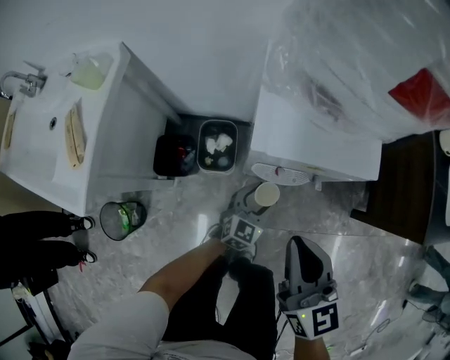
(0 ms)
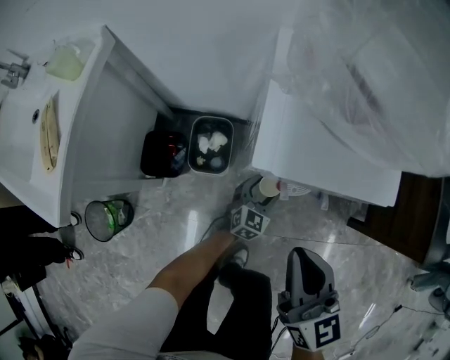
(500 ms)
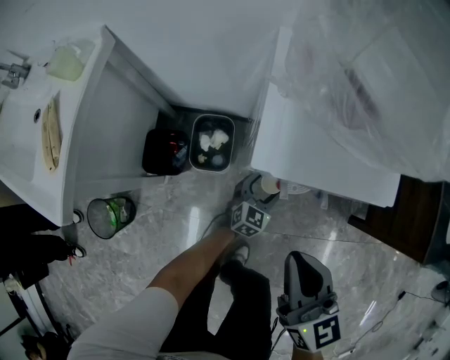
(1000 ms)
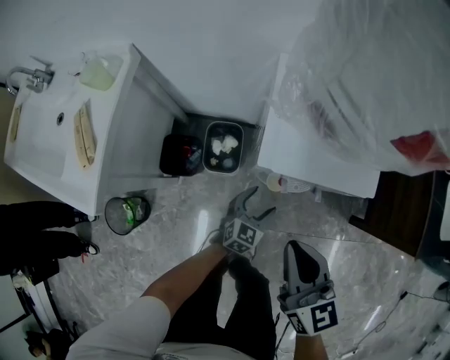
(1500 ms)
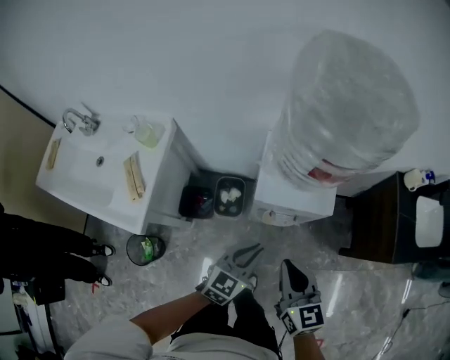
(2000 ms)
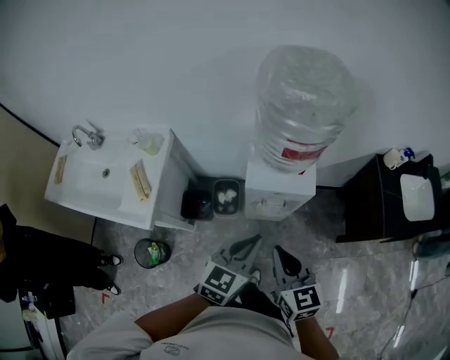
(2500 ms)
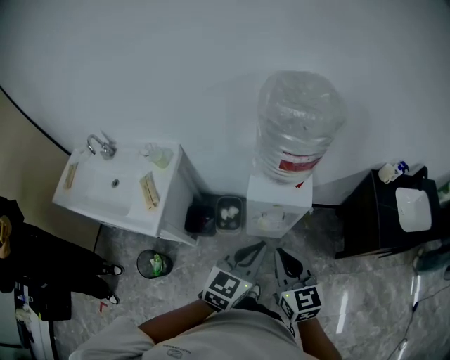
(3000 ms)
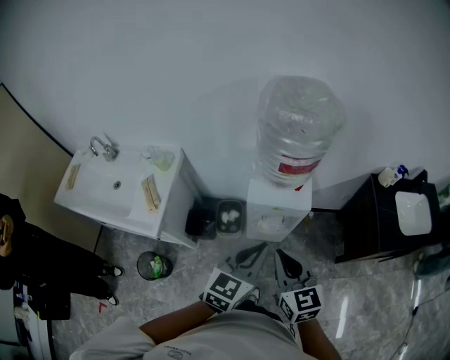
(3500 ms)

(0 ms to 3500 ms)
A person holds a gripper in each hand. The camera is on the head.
0 ms - 2000 ms: The right gripper is displaced upward by roughly 15 cm. Meanwhile the left gripper travels upward by some 30 cm, and closes its fingers.
2000 ms - 3500 ms: The left gripper travels upward by some 20 cm. The right gripper moves upward and backward, approximately 15 cm.

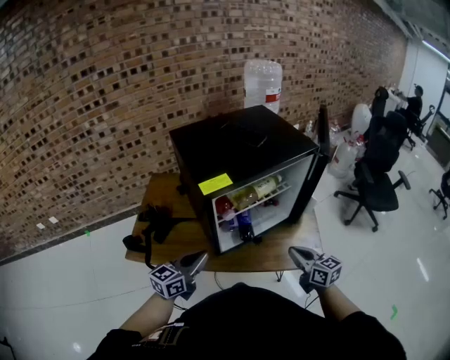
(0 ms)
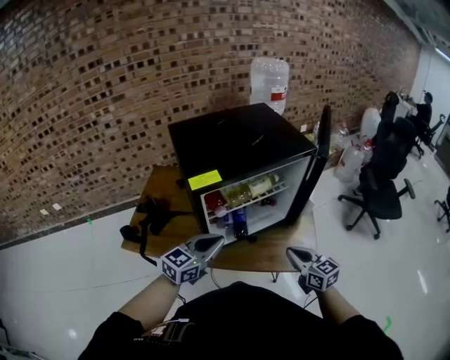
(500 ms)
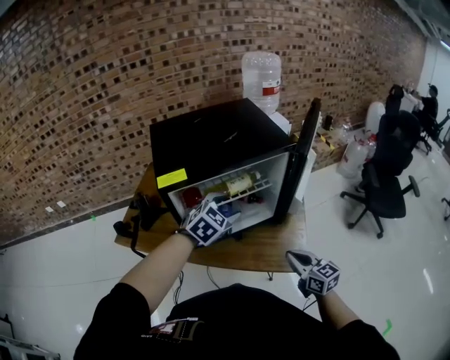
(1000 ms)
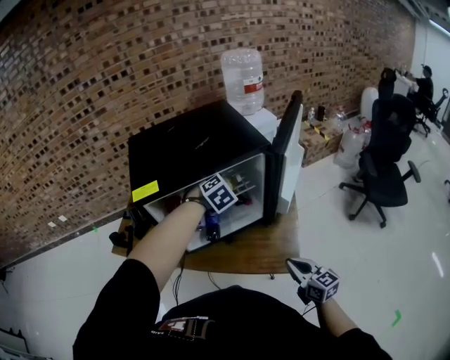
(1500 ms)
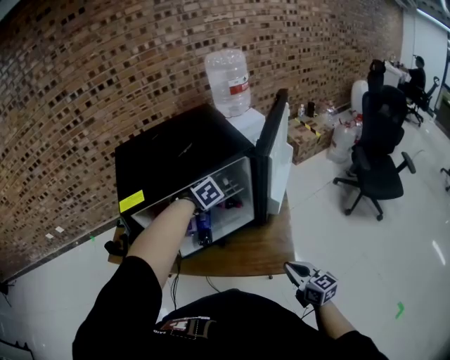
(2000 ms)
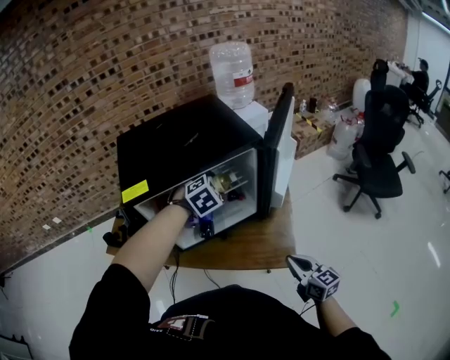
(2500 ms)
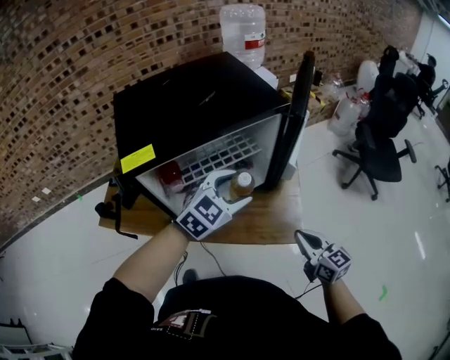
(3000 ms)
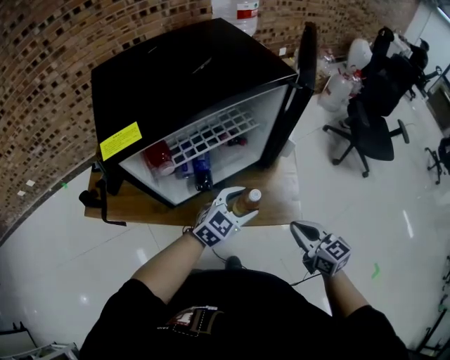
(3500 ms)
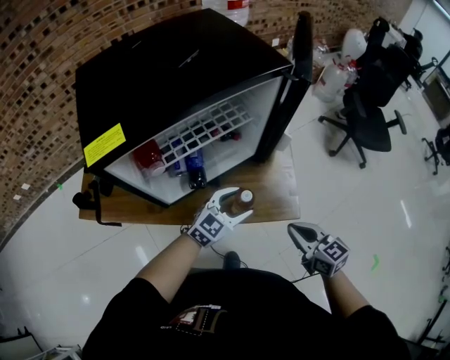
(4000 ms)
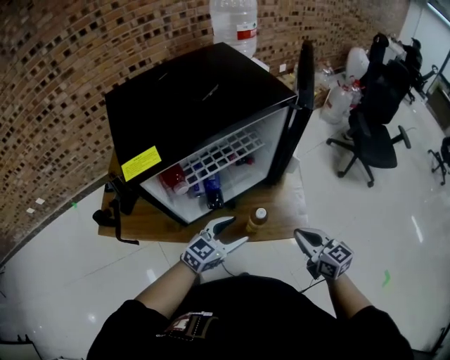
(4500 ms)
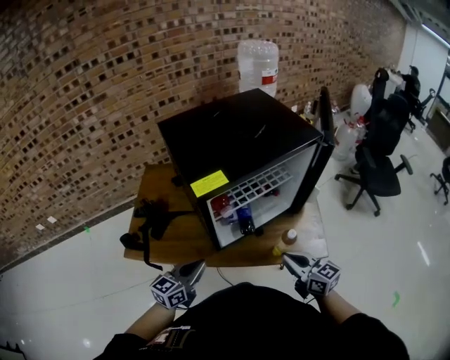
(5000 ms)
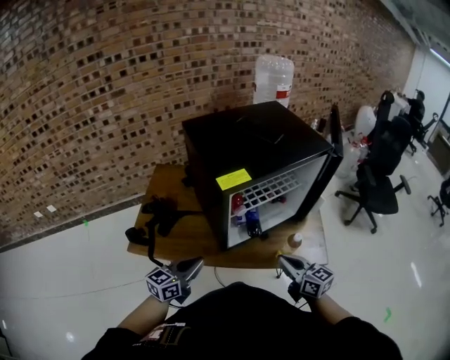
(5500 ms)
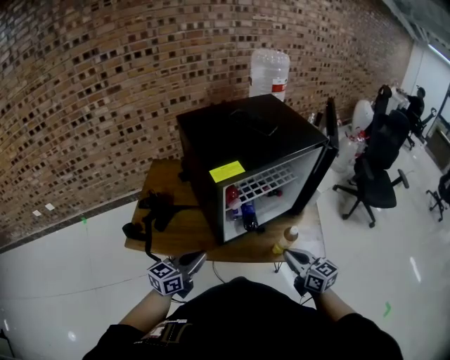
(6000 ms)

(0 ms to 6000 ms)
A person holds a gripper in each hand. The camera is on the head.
0 ms - 2000 ms: The right gripper heads to the right, covering about 20 cm, while the left gripper heads to the right and forward, covering roughly 40 cm, tips its fingers downward by about 50 degrees, and opens up.
2000 ms - 4000 ms: The left gripper ends up approximately 25 cm from where it was, and tips its fingers upward by roughly 40 degrees. Meanwhile the right gripper moves some 5 cm.
4000 ms - 6000 ms: The right gripper moves to the left and upward, about 20 cm. Meanwhile the left gripper moves to the left and backward, approximately 40 cm, changes its angle by about 30 degrees, and closes up.

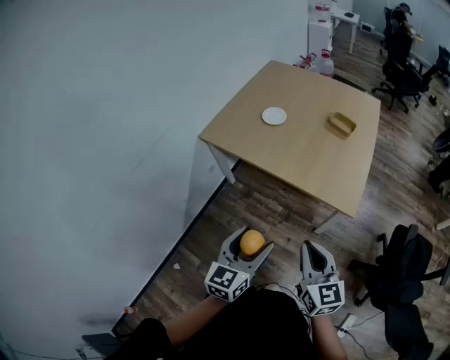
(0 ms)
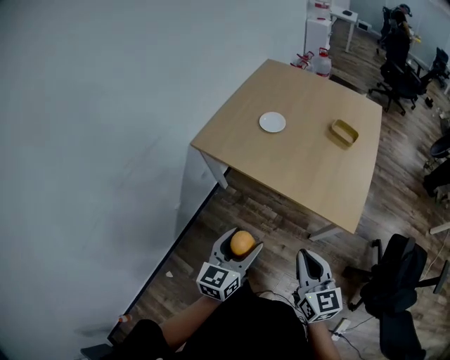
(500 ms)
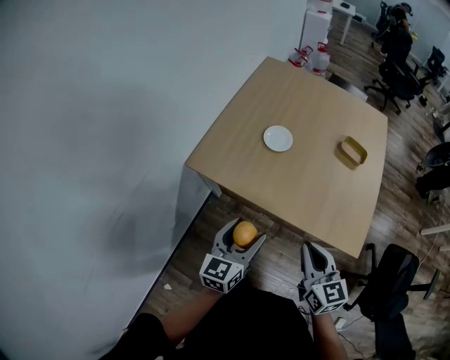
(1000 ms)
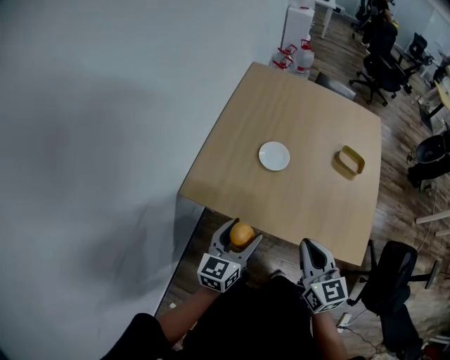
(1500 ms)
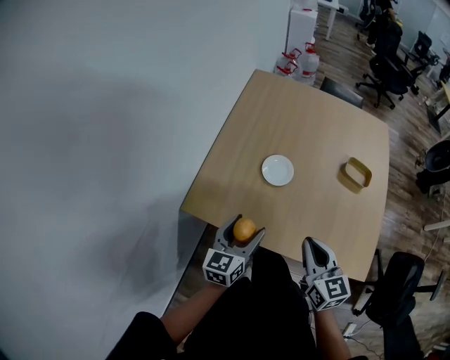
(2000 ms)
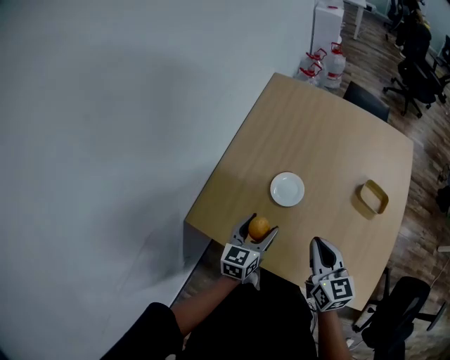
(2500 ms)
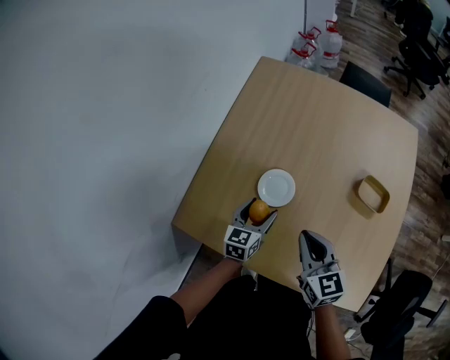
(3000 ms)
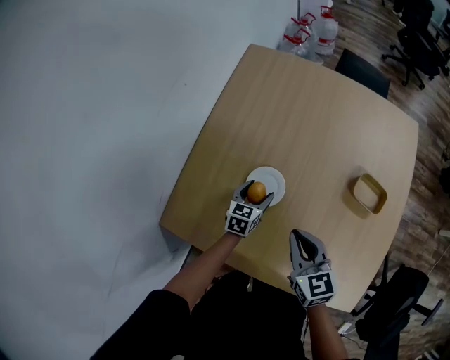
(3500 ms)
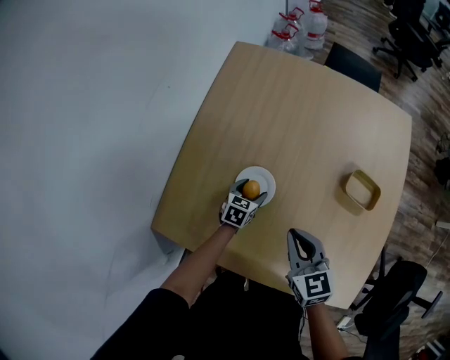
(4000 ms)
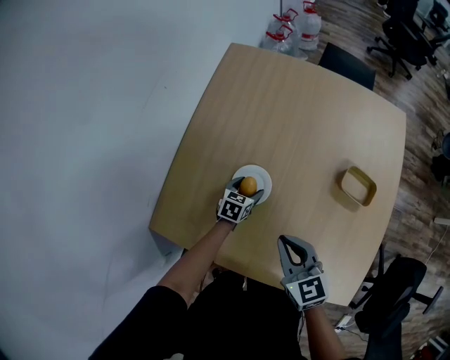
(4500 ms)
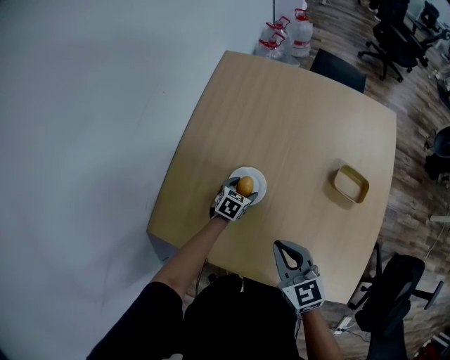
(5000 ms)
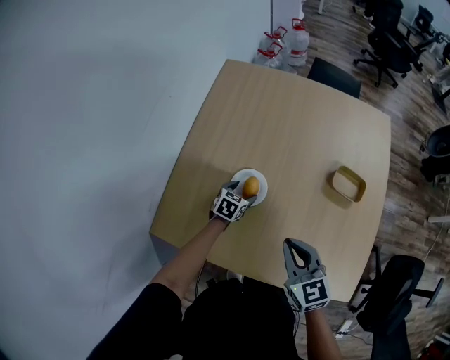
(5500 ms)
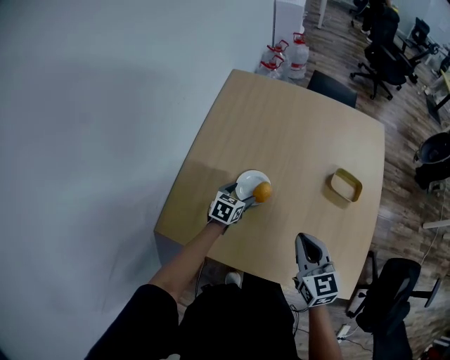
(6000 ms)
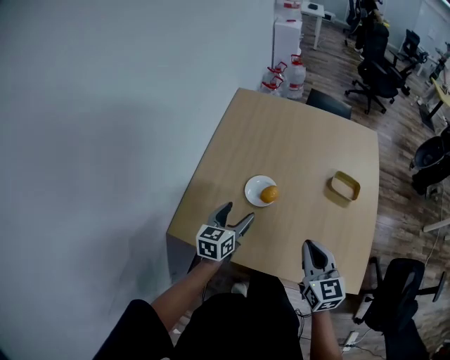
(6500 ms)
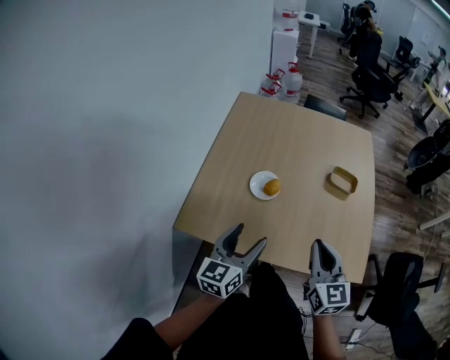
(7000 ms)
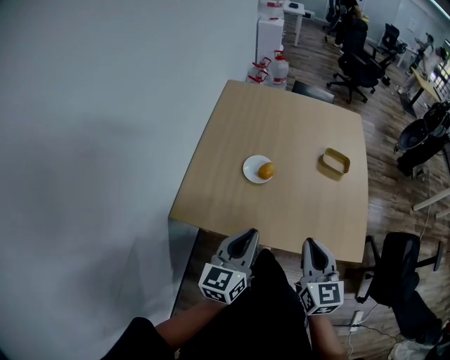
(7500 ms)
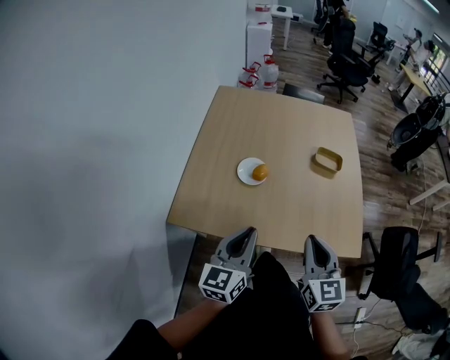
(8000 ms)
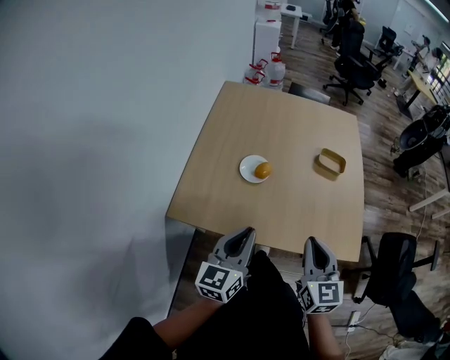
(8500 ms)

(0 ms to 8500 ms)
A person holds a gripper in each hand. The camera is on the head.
0 ms - 2000 ms: Both grippers are carried forward, some 50 cm.
2000 ms - 4000 ms: The right gripper shifts approximately 20 cm forward and downward. The left gripper travels forward, downward and to the right by approximately 40 cm, and points its fingers about 30 degrees further downward.
4000 ms - 6500 ms: The right gripper goes some 15 cm backward and upward. The left gripper is displaced upward and backward by approximately 25 cm, and turns by approximately 30 degrees.
6500 ms - 8500 ms: The right gripper heads backward, covering approximately 15 cm. The left gripper travels backward and upward by about 20 cm, and closes its fingers.

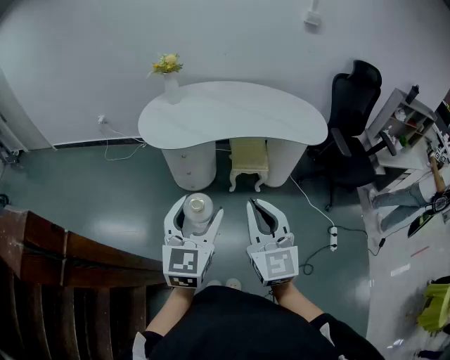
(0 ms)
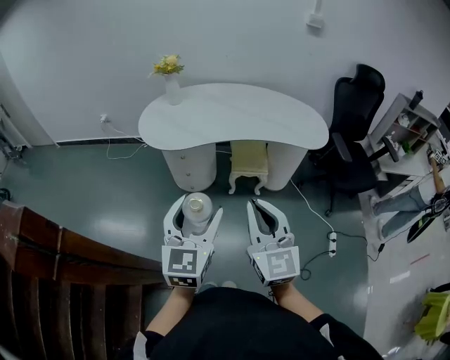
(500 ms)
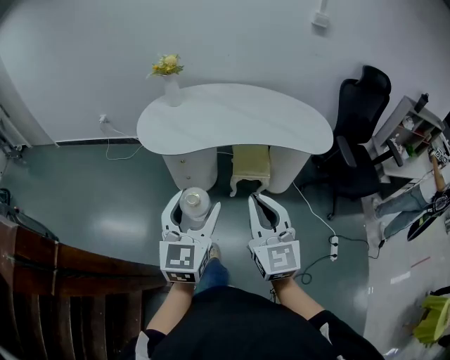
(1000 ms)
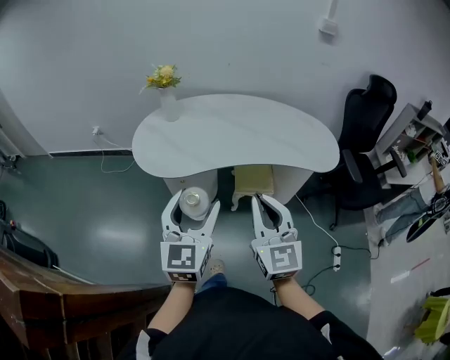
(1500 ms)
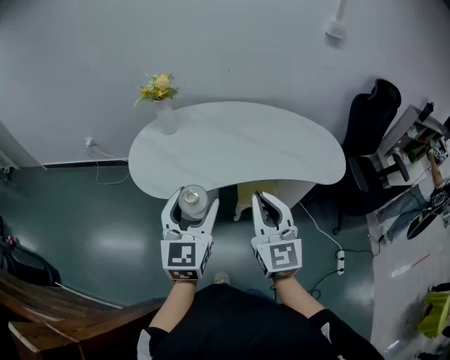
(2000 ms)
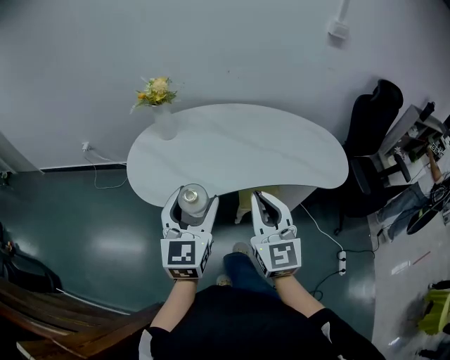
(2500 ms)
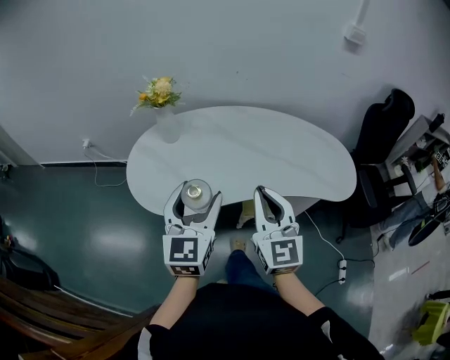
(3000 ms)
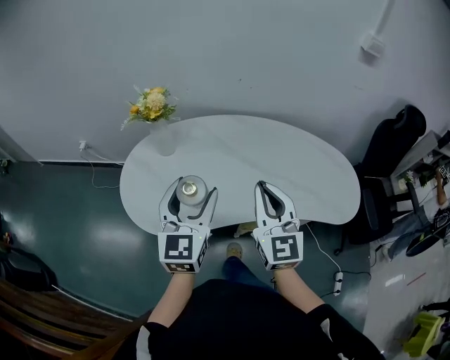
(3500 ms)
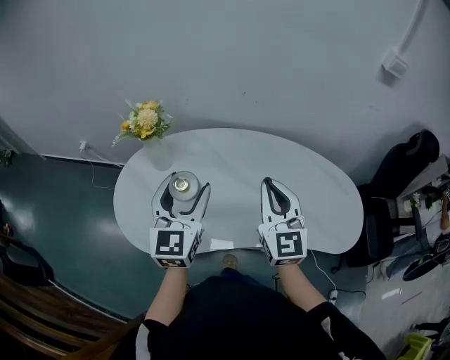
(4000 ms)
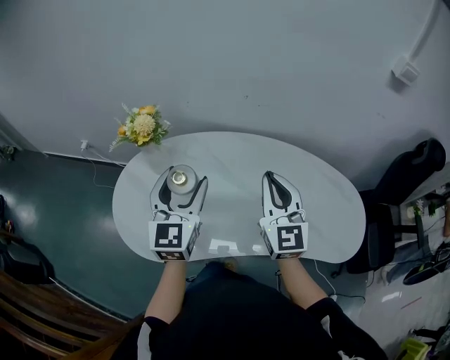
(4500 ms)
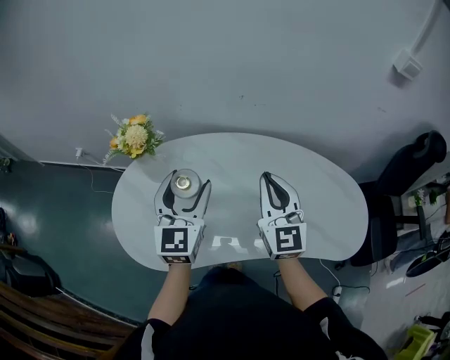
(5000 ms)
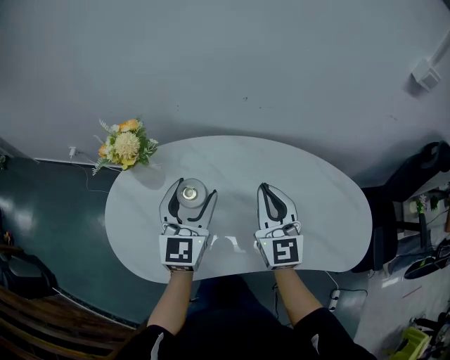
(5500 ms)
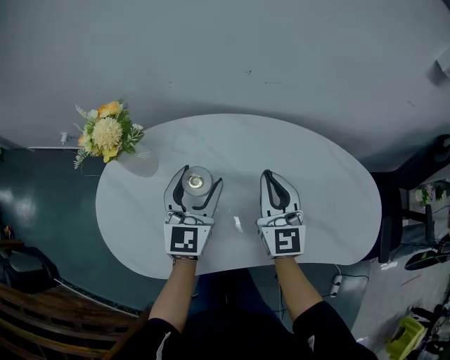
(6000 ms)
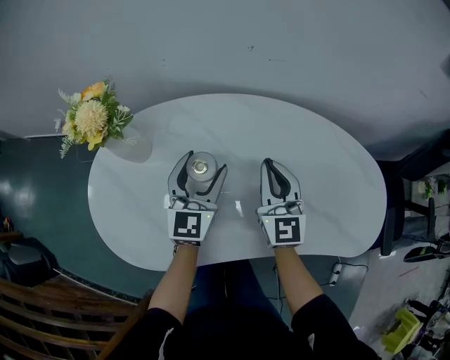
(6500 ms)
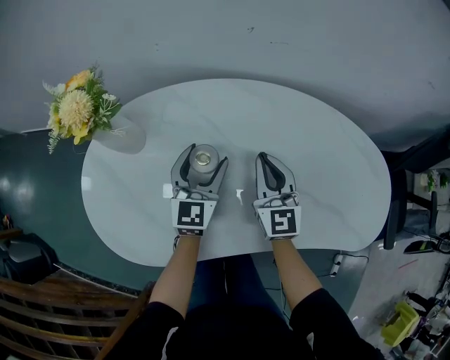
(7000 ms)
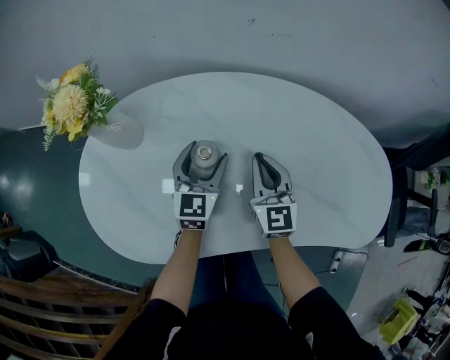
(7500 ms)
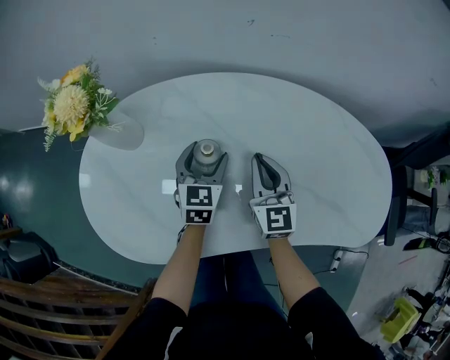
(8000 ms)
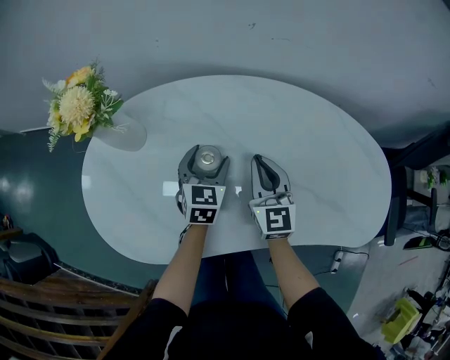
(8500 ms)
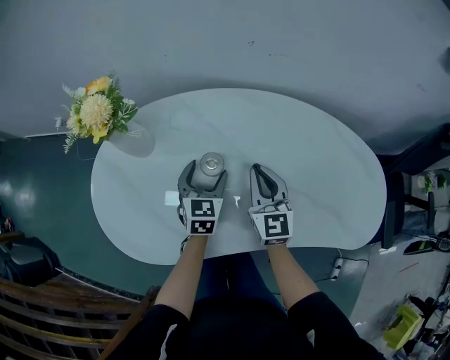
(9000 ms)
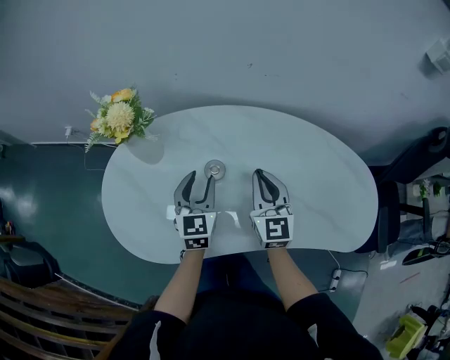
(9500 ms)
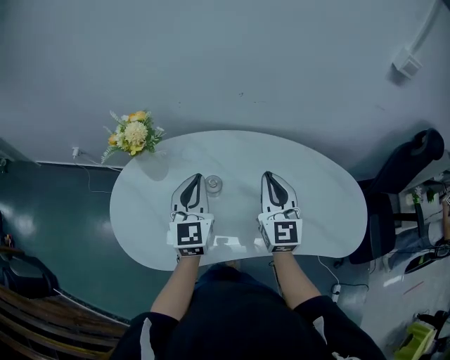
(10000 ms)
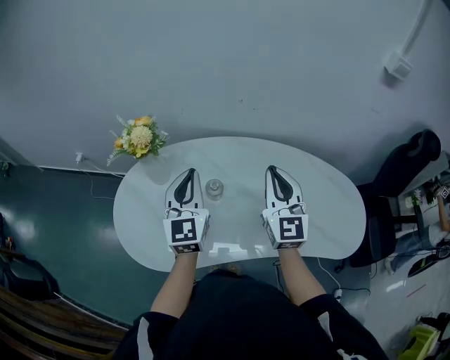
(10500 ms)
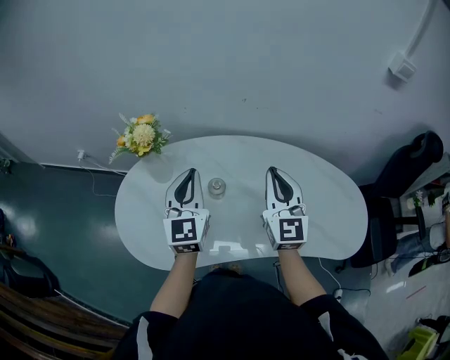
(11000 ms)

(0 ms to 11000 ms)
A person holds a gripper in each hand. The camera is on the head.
0 ms - 2000 ms: Both grippers move forward, roughly 30 cm.
2000 ms - 3500 ms: Both grippers travel together forward, about 20 cm.
3500 ms - 5500 ms: Both grippers move forward, roughly 20 cm.
5500 ms - 7500 ms: The grippers both shift downward by roughly 20 cm.
7500 ms - 9000 ms: The grippers make only small movements.
9000 ms - 11000 ms: Both grippers travel together upward, about 25 cm. The left gripper tips its fingers upward by approximately 30 degrees, and closes up.
